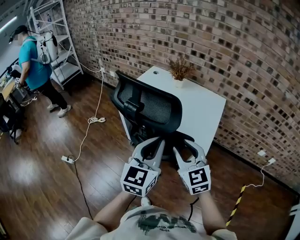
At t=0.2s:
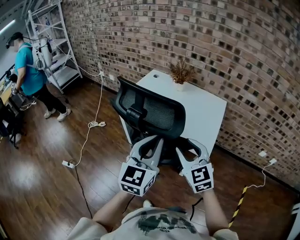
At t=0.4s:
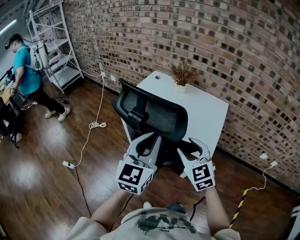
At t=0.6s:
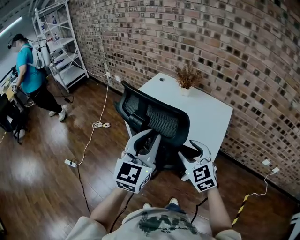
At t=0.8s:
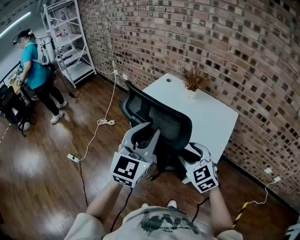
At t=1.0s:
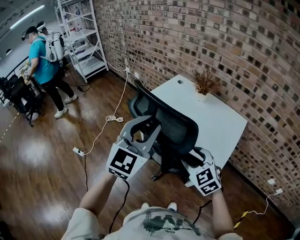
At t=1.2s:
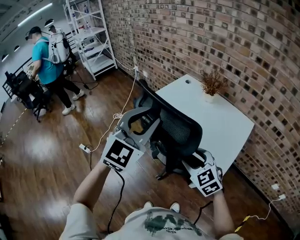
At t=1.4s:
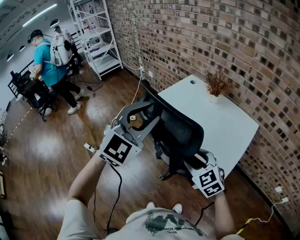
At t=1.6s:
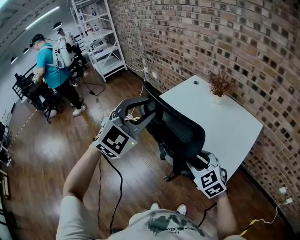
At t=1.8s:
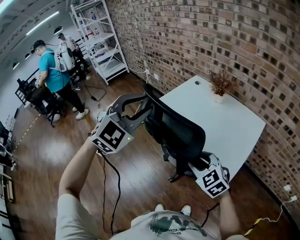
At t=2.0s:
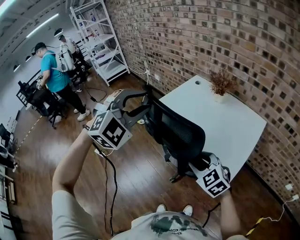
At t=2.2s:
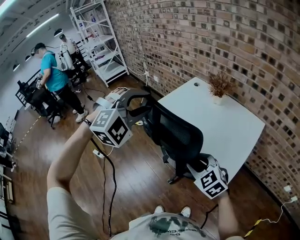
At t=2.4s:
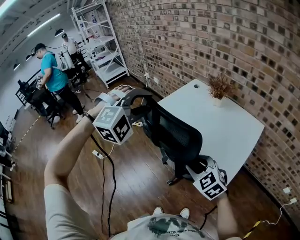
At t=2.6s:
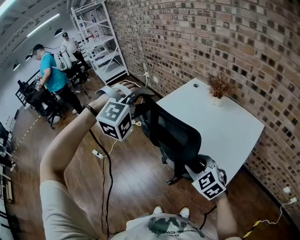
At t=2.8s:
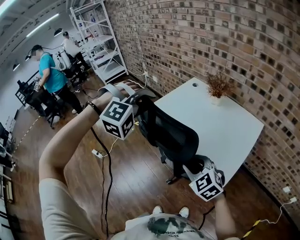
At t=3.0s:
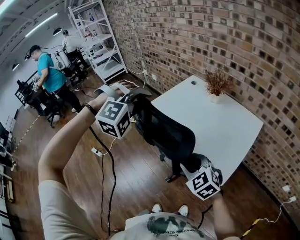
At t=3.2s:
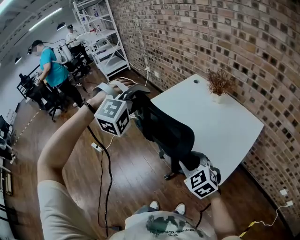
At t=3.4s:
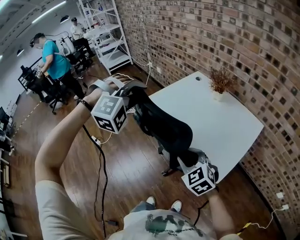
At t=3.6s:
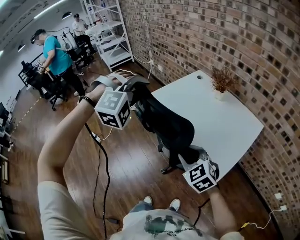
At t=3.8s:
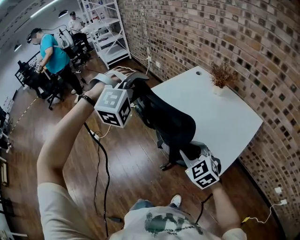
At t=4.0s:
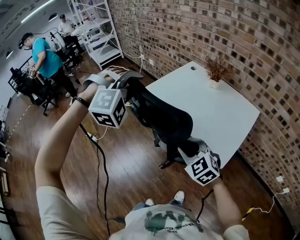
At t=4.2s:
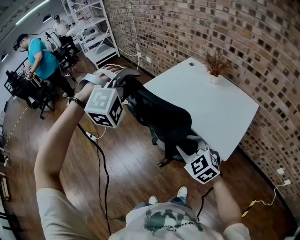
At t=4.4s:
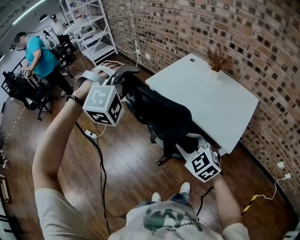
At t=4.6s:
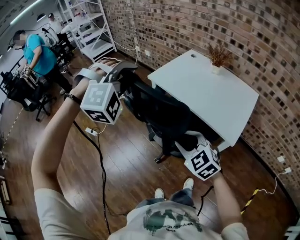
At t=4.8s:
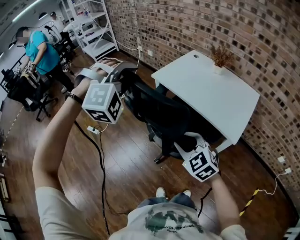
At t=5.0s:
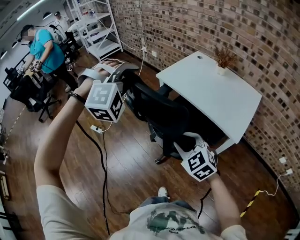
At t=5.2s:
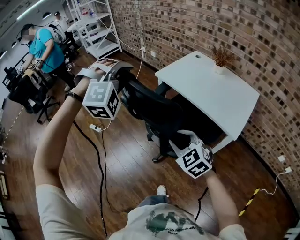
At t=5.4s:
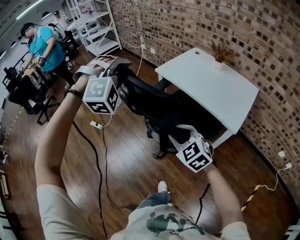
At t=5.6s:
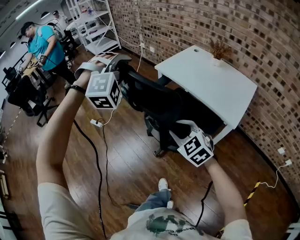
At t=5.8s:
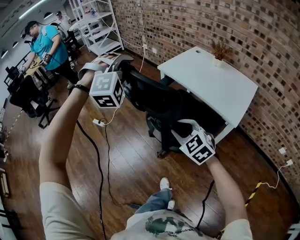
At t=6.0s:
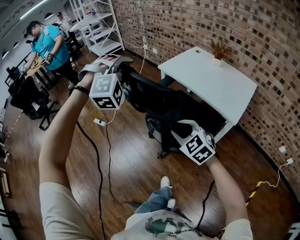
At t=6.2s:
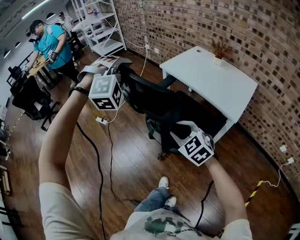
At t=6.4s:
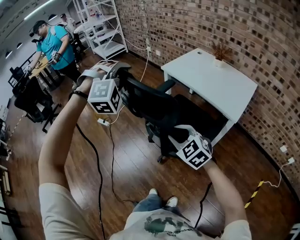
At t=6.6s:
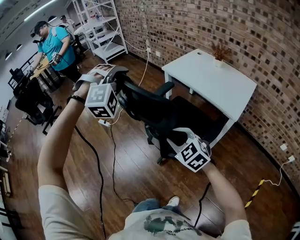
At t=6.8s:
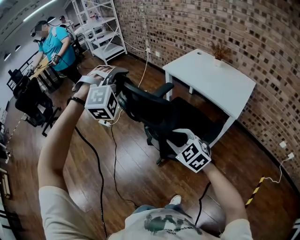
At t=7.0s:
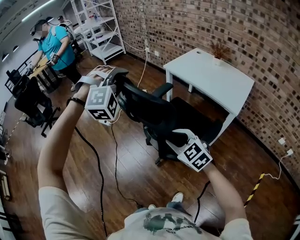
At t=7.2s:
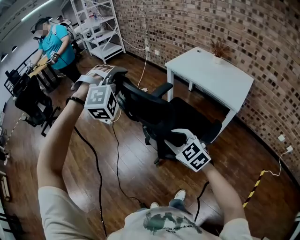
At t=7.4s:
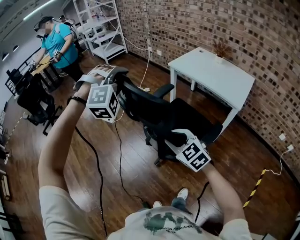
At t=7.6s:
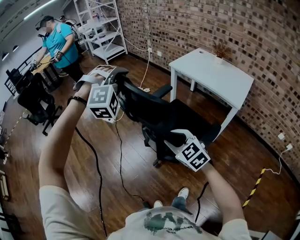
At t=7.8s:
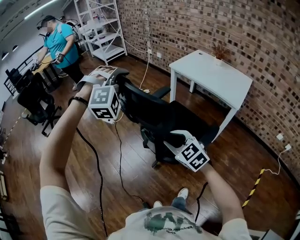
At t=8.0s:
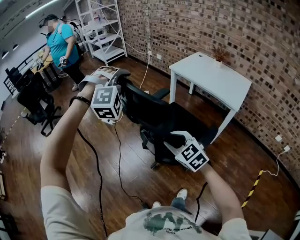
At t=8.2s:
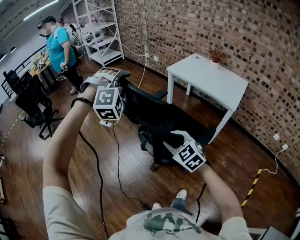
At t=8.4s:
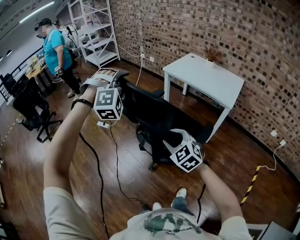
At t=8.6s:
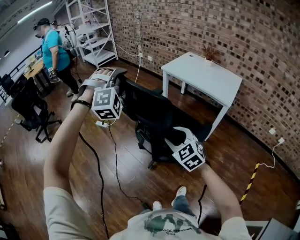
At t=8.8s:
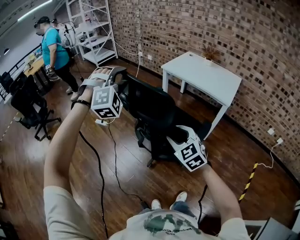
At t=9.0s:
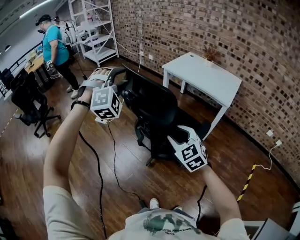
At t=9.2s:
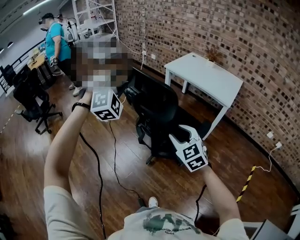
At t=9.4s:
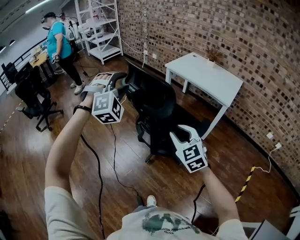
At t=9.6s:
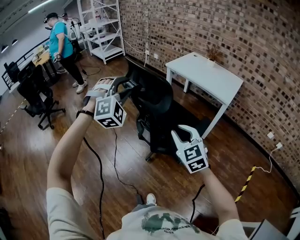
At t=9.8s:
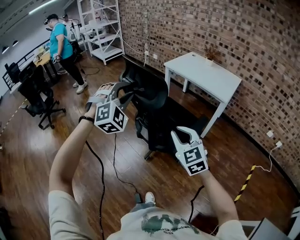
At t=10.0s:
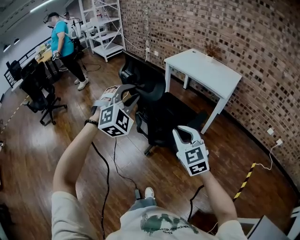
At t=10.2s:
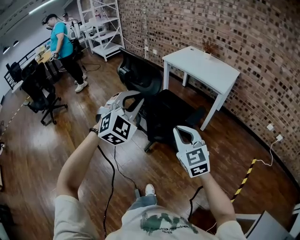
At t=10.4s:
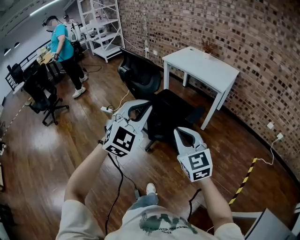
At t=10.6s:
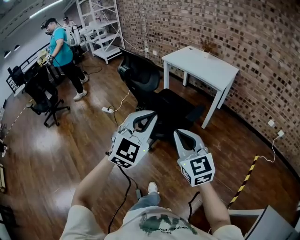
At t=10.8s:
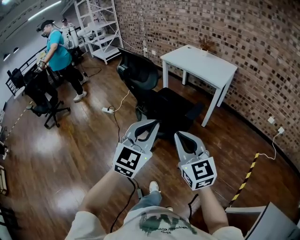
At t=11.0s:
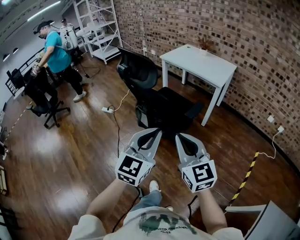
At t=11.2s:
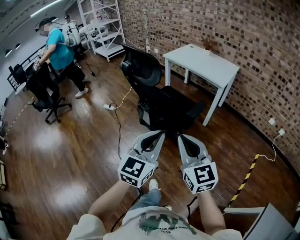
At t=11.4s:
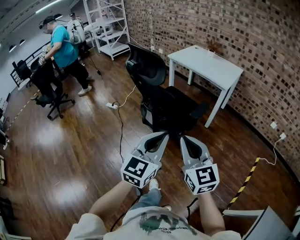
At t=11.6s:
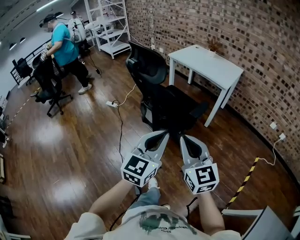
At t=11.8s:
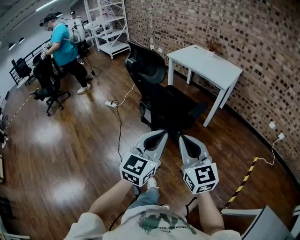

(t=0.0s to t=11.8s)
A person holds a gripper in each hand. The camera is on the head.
t=0.0s - t=1.4s: The left gripper travels forward, upward and to the left by approximately 15 cm, rolls clockwise, seen from behind, by some 40 degrees, and opens; the right gripper goes approximately 10 cm forward and downward, and turns by some 30 degrees.
t=1.4s - t=3.0s: The left gripper moves forward, roughly 10 cm, and rolls clockwise, seen from behind, by some 50 degrees.
t=3.0s - t=4.4s: Both grippers travel together to the left and backward, some 15 cm.
t=4.4s - t=6.0s: Both grippers move to the left and backward, some 20 cm.
t=6.0s - t=7.4s: The two grippers go roughly 20 cm to the left and backward.
t=7.4s - t=8.8s: The left gripper ends up about 5 cm from where it was.
t=8.8s - t=10.4s: The right gripper is displaced backward by roughly 20 cm, turns by roughly 20 degrees, and closes up; the left gripper heads backward and to the right, covering some 35 cm, rotates around the line of its fingers by approximately 40 degrees, counterclockwise from behind, and closes its fingers.
t=10.4s - t=11.8s: The left gripper travels backward and downward by roughly 15 cm, and changes its angle by some 40 degrees, while the right gripper moves backward, about 10 cm.

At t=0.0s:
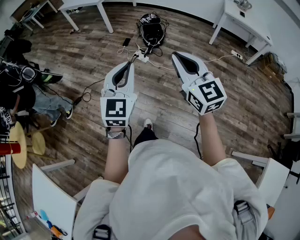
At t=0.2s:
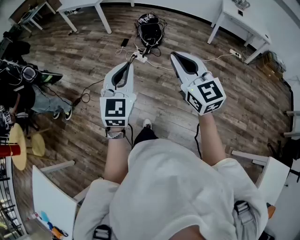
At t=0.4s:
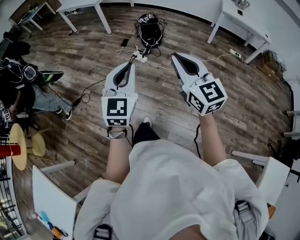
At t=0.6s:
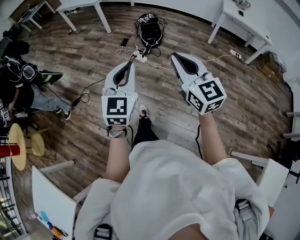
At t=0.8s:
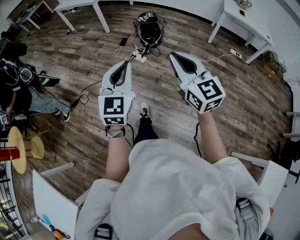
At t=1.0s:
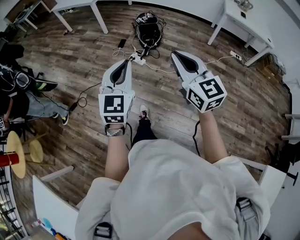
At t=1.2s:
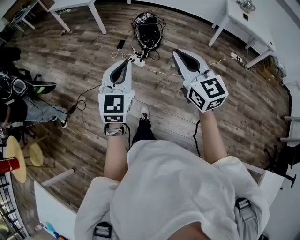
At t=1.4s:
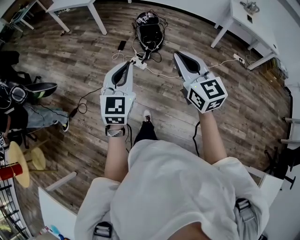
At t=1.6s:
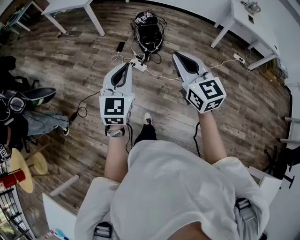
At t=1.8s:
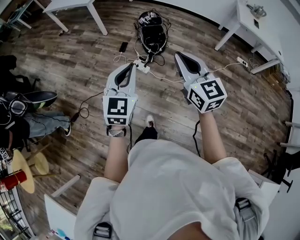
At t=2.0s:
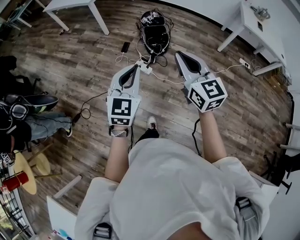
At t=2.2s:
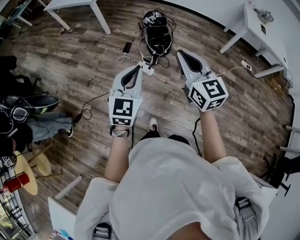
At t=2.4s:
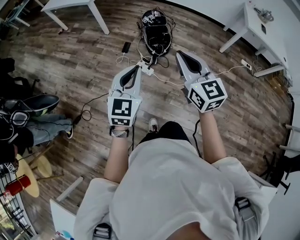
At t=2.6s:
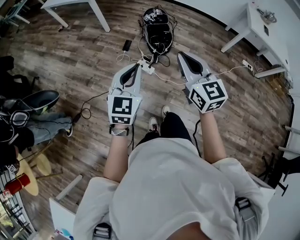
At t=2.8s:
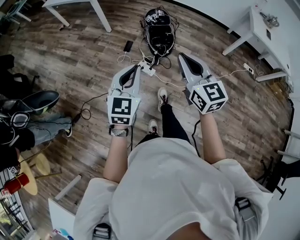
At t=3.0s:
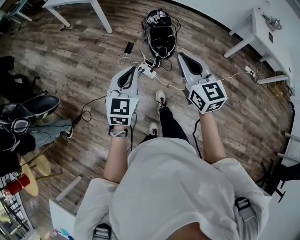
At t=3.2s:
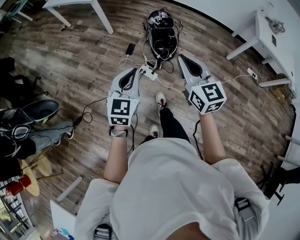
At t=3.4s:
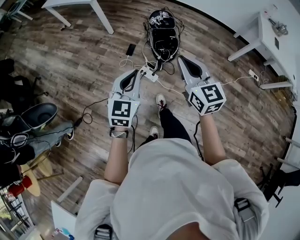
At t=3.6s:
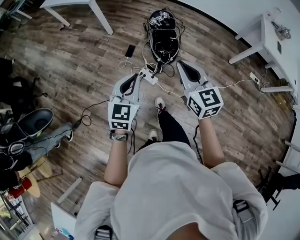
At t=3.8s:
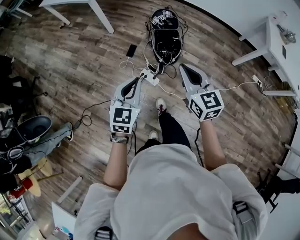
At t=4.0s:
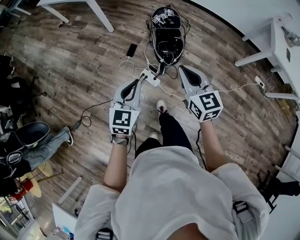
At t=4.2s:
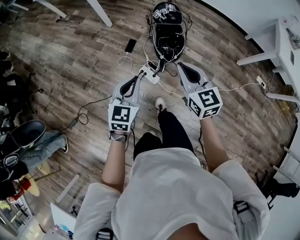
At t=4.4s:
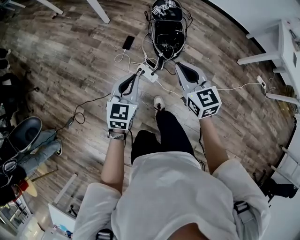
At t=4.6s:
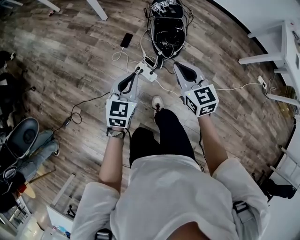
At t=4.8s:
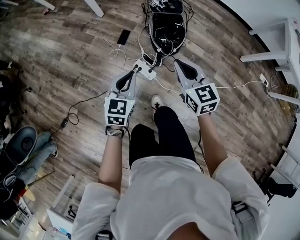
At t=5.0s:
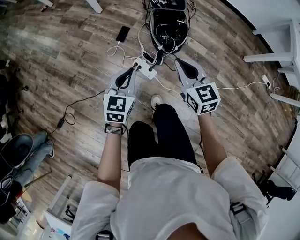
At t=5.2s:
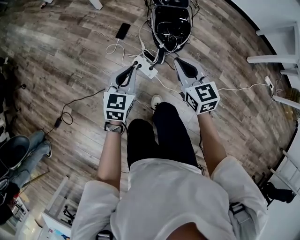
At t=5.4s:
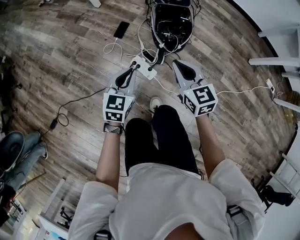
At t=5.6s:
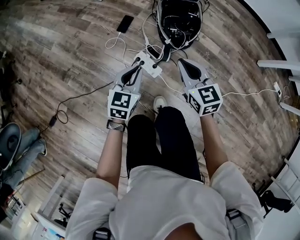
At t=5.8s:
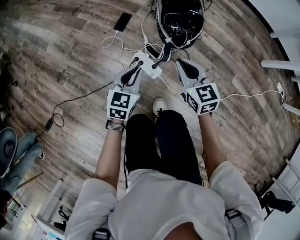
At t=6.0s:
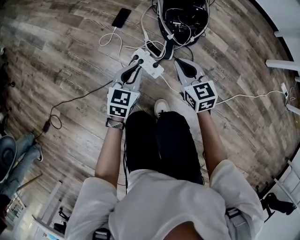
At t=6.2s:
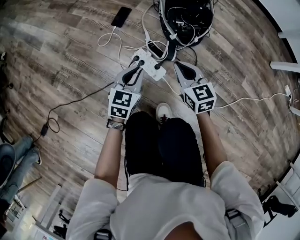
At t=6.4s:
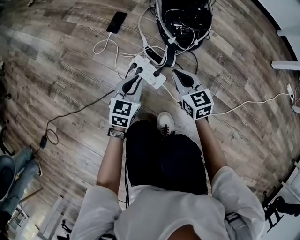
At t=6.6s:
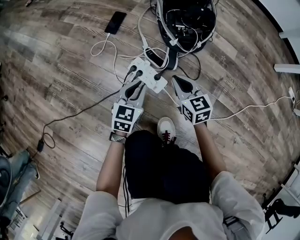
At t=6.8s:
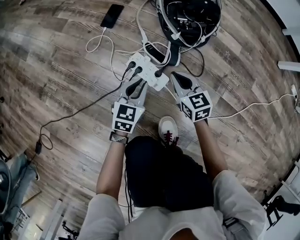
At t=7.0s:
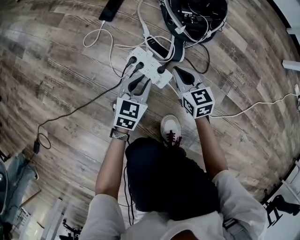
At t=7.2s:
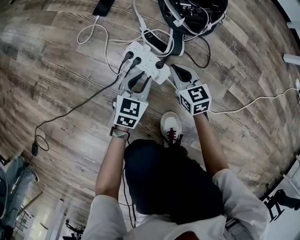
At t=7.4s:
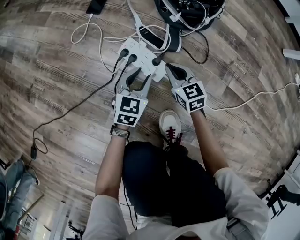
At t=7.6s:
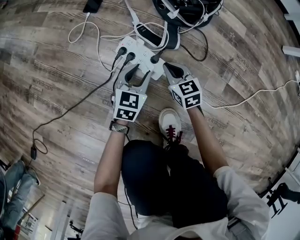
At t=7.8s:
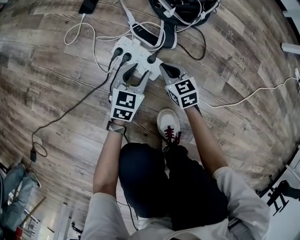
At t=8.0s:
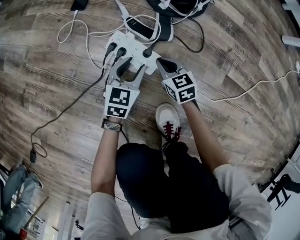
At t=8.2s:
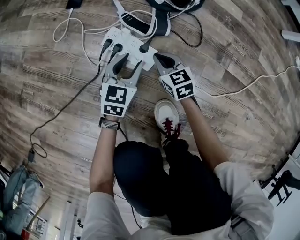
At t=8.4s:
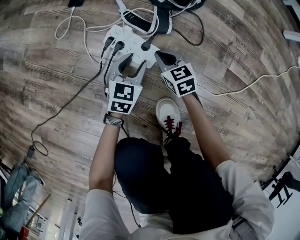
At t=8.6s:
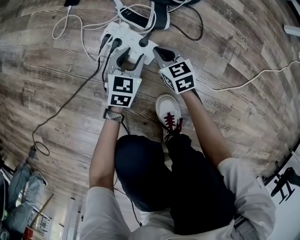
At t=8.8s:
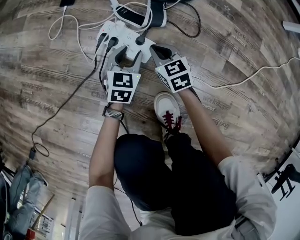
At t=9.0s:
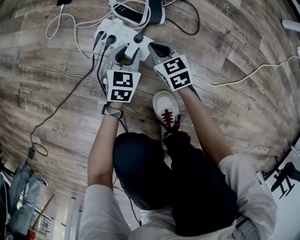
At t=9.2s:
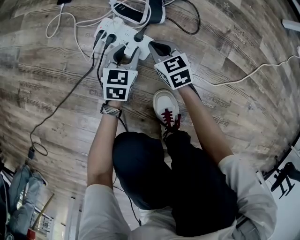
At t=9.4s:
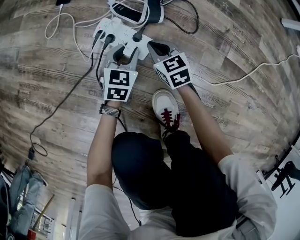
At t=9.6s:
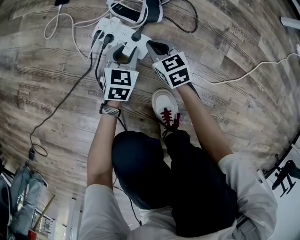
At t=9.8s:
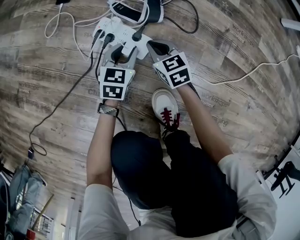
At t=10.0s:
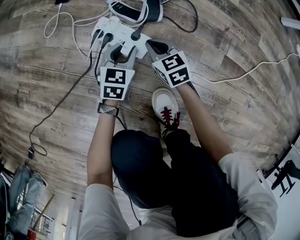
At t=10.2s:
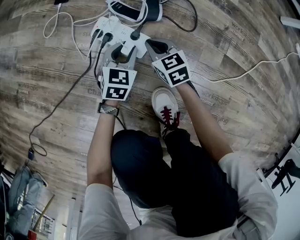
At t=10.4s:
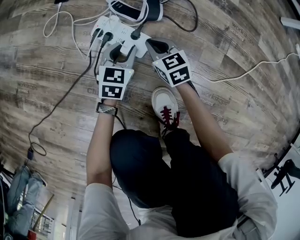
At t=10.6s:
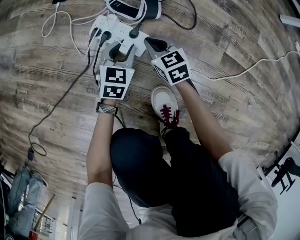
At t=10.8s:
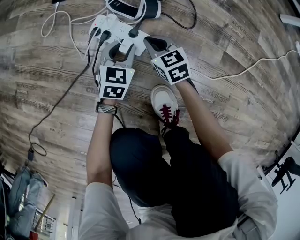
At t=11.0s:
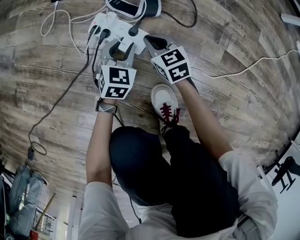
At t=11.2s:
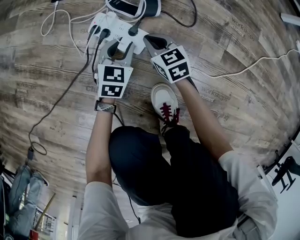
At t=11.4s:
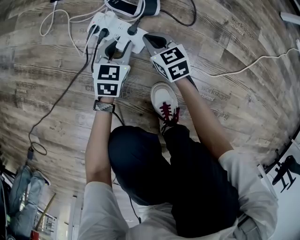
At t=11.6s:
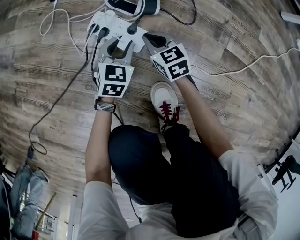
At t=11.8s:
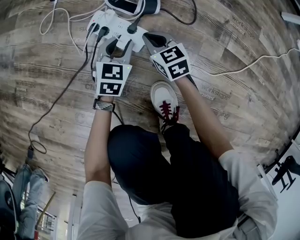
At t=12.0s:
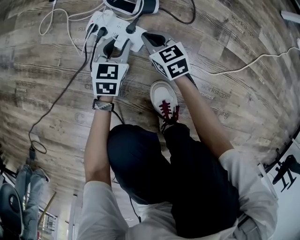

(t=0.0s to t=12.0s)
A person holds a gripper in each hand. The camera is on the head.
t=0.0s - t=1.6s: The two grippers go approximately 30 cm forward.
t=1.6s - t=3.0s: Both grippers travel together forward, some 20 cm.
t=3.0s - t=4.4s: Both grippers move downward and forward, roughly 30 cm.
t=4.4s - t=6.0s: Both grippers move downward, some 50 cm.
t=6.0s - t=7.6s: Both grippers move downward, approximately 30 cm. The left gripper opens.
t=7.6s - t=12.0s: There are only small adjustments of the grippers.
